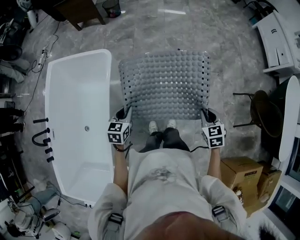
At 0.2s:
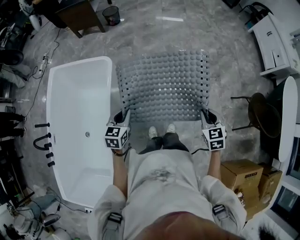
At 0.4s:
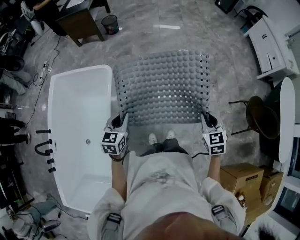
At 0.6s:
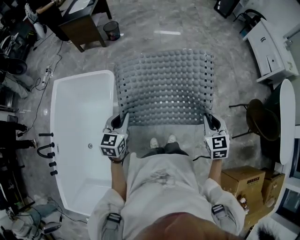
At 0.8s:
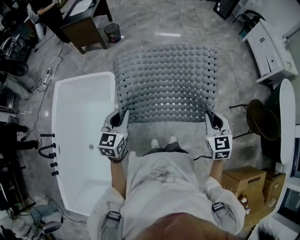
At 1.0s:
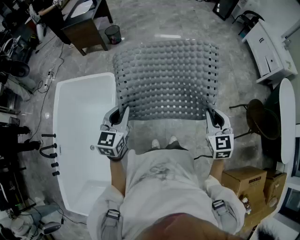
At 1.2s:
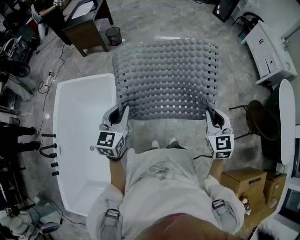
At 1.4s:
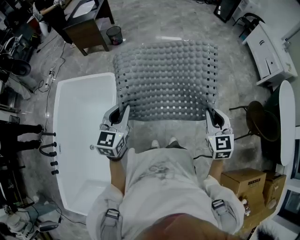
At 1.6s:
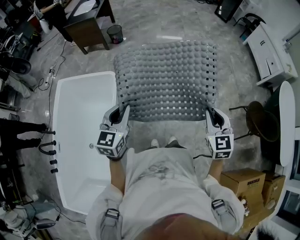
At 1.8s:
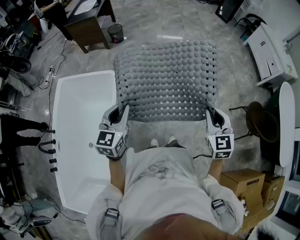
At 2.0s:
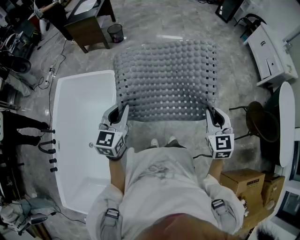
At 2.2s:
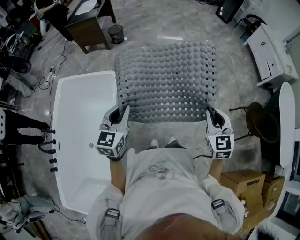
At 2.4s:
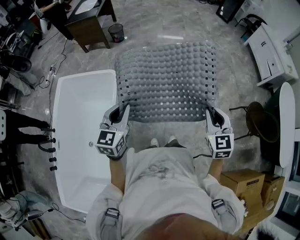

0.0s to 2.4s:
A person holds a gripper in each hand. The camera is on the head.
0.0s to 1.2s: Both grippers move upward, approximately 25 cm. The left gripper rotates some 30 degrees. Meanwhile the right gripper turns by some 30 degrees.
1.2s to 2.4s: Both grippers stay about where they are.

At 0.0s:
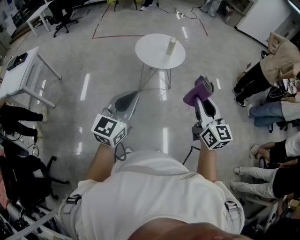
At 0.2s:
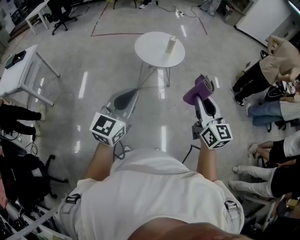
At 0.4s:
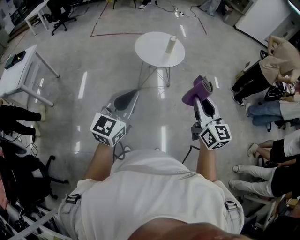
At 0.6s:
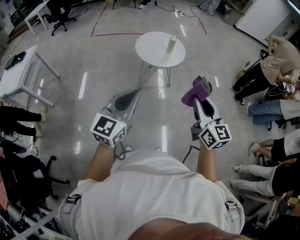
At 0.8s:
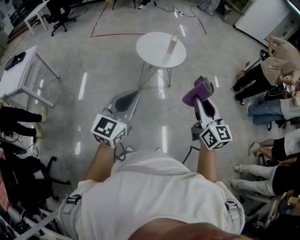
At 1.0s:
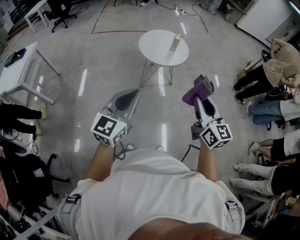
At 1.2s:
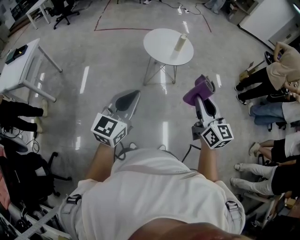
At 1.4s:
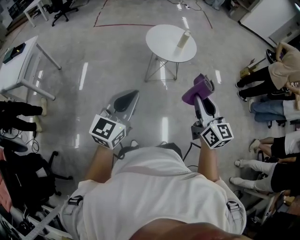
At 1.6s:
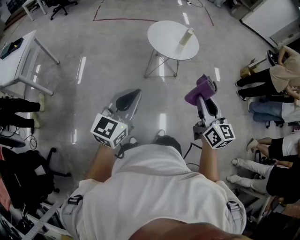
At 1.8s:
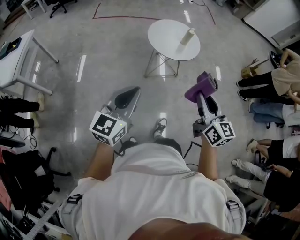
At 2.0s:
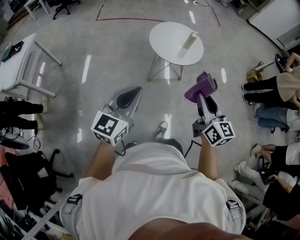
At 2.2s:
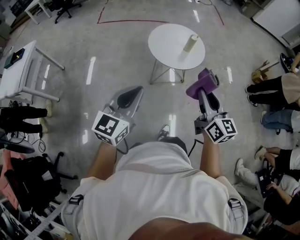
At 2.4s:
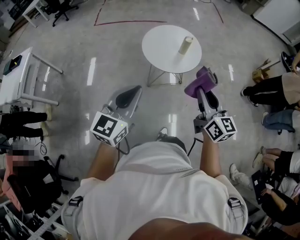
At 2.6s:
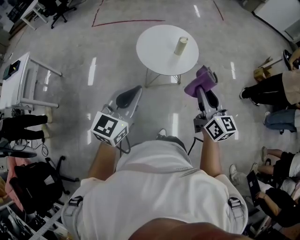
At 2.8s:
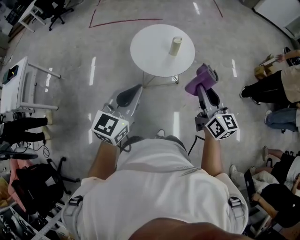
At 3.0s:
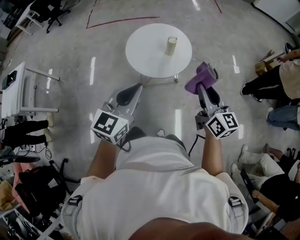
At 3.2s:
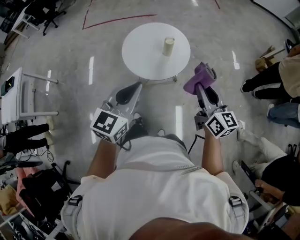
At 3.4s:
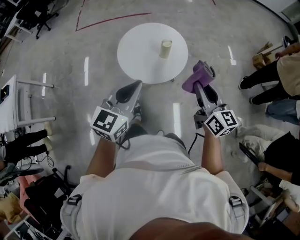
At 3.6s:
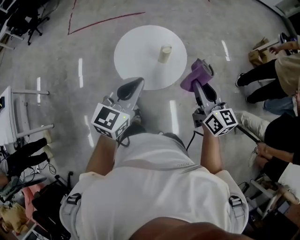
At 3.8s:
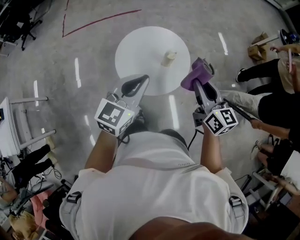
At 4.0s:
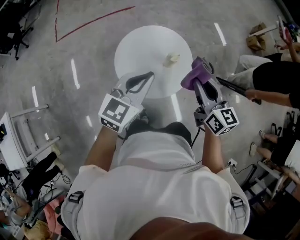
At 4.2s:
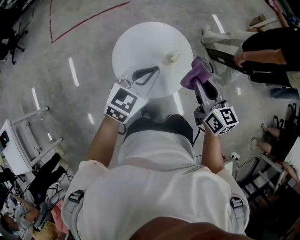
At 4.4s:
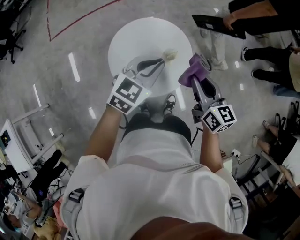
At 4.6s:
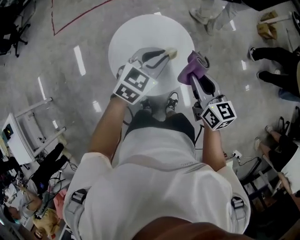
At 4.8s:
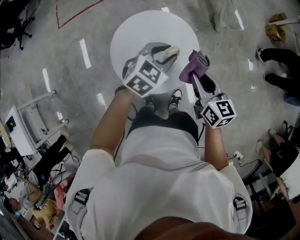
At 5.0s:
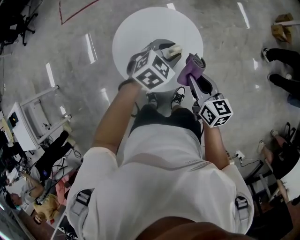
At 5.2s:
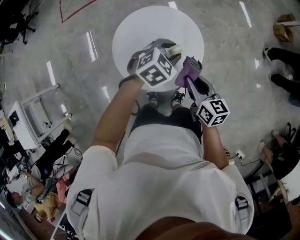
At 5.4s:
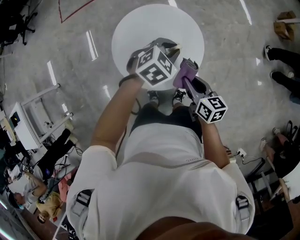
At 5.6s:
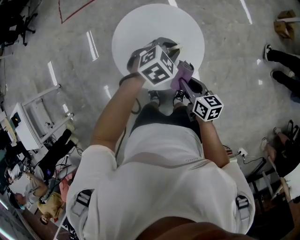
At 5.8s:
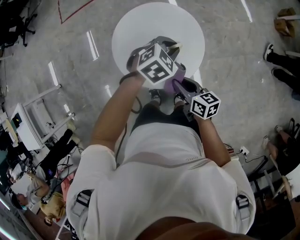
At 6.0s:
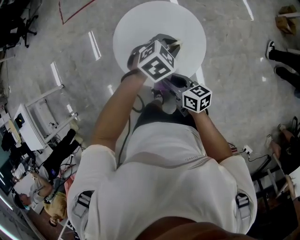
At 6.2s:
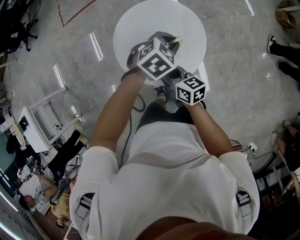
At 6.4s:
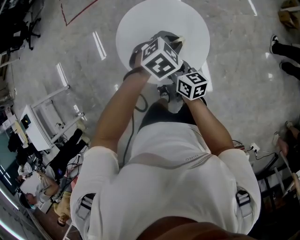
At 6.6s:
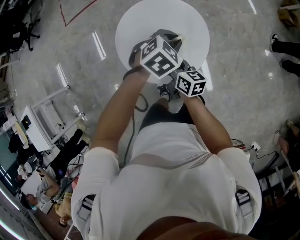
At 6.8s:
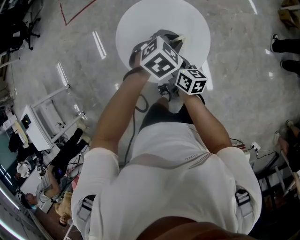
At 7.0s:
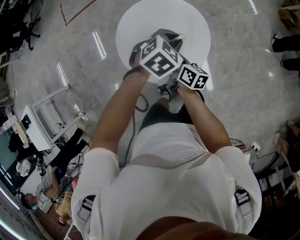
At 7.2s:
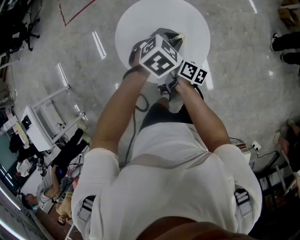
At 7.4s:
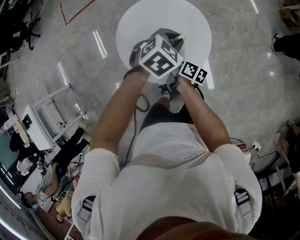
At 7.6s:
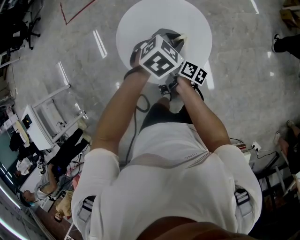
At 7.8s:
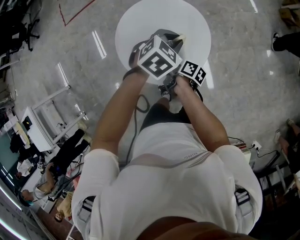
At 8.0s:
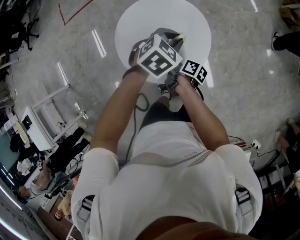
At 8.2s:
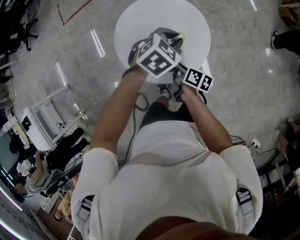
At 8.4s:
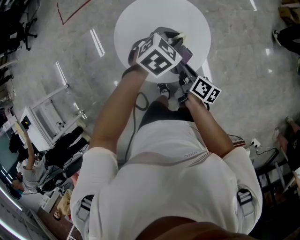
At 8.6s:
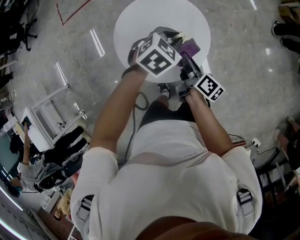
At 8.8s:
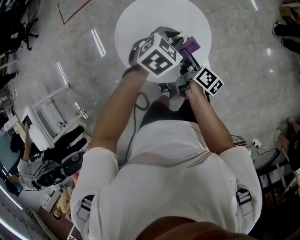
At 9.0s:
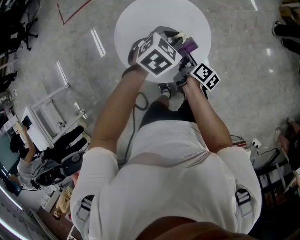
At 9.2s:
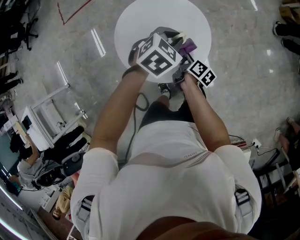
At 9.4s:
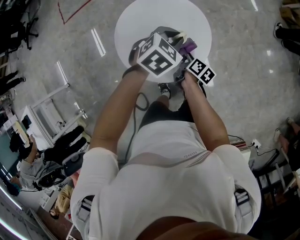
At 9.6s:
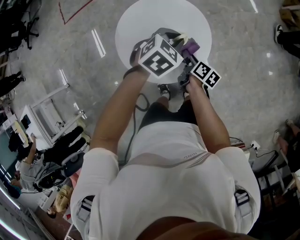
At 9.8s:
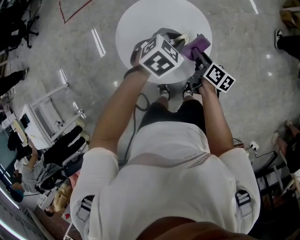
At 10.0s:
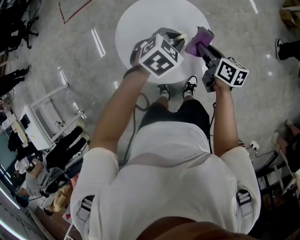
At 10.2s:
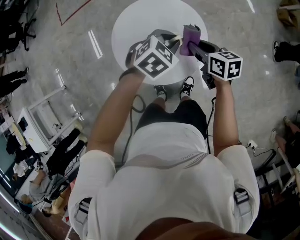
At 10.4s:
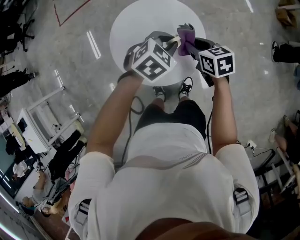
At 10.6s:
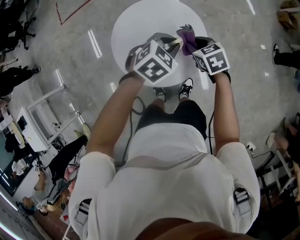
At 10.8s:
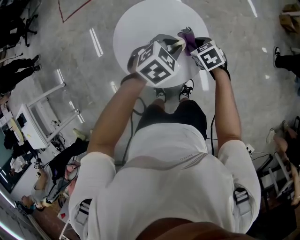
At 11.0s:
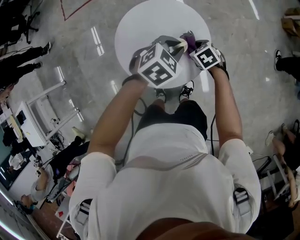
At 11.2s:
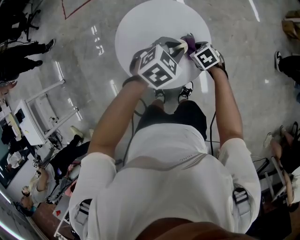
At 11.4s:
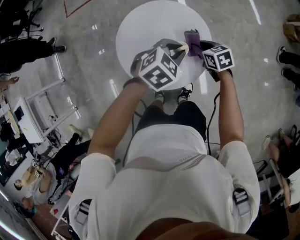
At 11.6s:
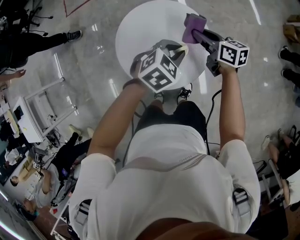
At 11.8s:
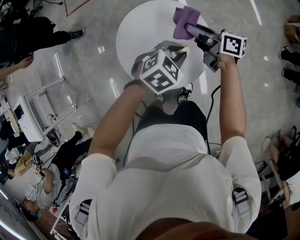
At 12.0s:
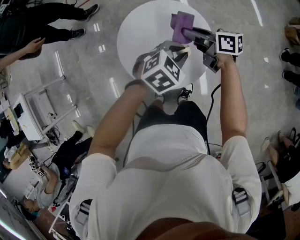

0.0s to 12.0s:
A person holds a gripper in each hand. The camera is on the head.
0.0s to 1.6s: The grippers both shift to the left by some 15 cm.
1.6s to 3.0s: Both grippers are carried forward and to the right, roughly 50 cm.
3.0s to 4.4s: The left gripper travels forward by approximately 40 cm, and changes its angle by some 40 degrees; the right gripper is displaced forward and to the left by some 35 cm.
4.4s to 6.0s: The right gripper travels downward and to the left by approximately 20 cm, and swivels roughly 40 degrees; the left gripper heads downward and forward, covering about 15 cm, rotates roughly 30 degrees, and opens, then closes again.
6.0s to 7.6s: The right gripper goes approximately 15 cm downward and forward, and twists about 40 degrees clockwise, seen from behind.
7.6s to 9.0s: The right gripper is displaced to the right by about 5 cm, and moves roughly 10 cm upward and comes back.
9.0s to 10.4s: The right gripper goes approximately 10 cm upward and forward, and twists about 60 degrees counterclockwise, seen from behind.
10.4s to 12.0s: The right gripper shifts about 10 cm forward and to the left, goes downward and returns, approximately 10 cm each way, and turns by some 40 degrees.

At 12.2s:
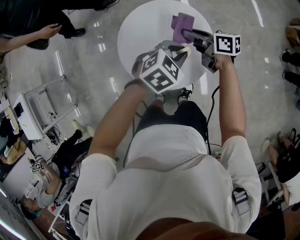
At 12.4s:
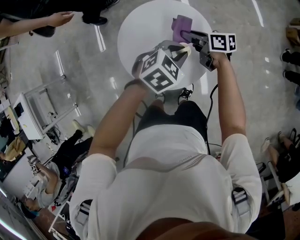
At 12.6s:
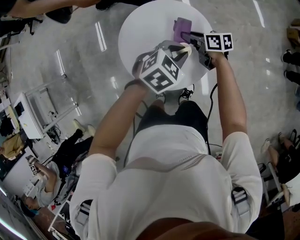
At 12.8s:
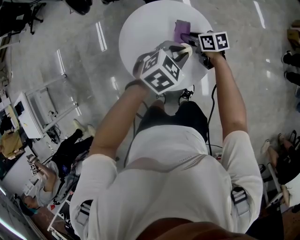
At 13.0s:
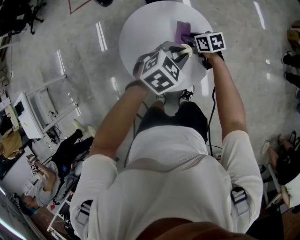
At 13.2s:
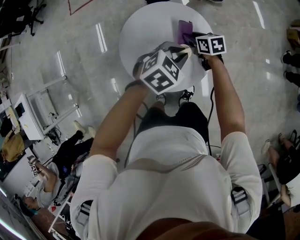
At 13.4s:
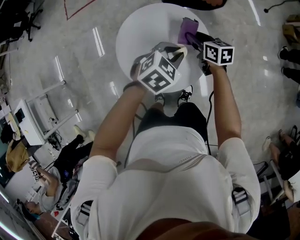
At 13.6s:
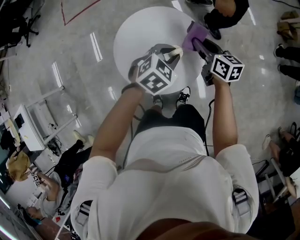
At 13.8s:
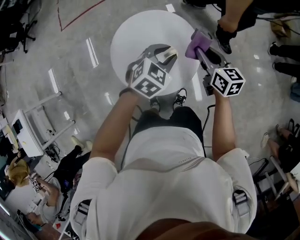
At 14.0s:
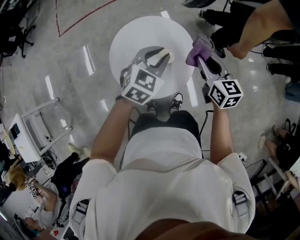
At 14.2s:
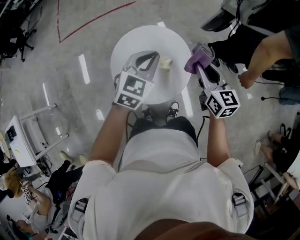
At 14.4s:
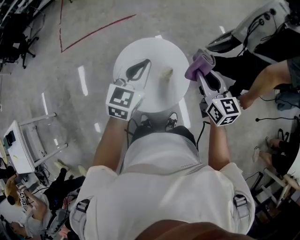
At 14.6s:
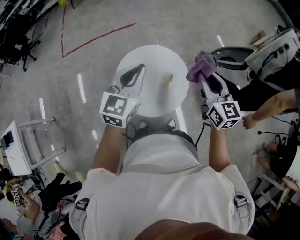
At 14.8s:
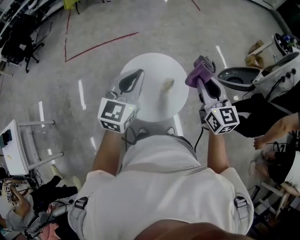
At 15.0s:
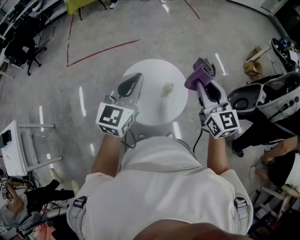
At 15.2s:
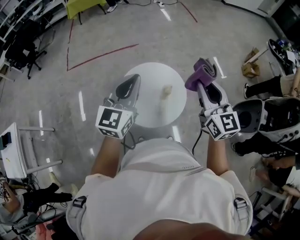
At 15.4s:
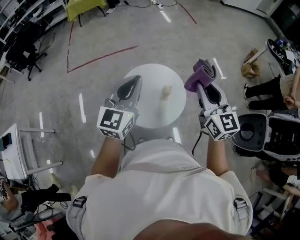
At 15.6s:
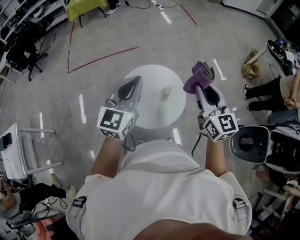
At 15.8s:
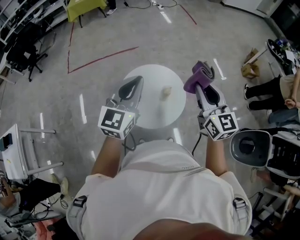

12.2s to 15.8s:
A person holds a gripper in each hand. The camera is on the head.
12.2s to 14.0s: The left gripper is displaced upward by some 10 cm, while the right gripper heads to the right, upward and backward, covering approximately 20 cm, and changes its angle by some 50 degrees.
14.0s to 15.8s: The two grippers go some 30 cm upward and backward. The left gripper points its fingers about 30 degrees further upward, and closes its fingers; the right gripper rotates some 30 degrees.

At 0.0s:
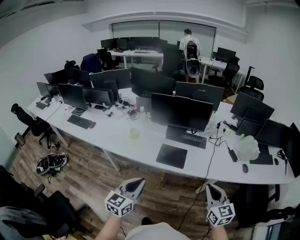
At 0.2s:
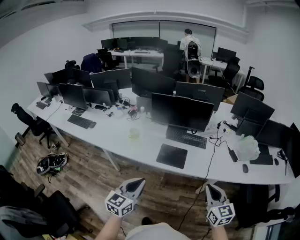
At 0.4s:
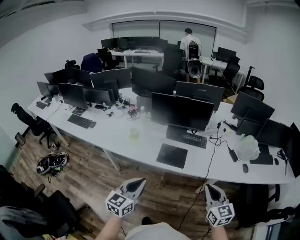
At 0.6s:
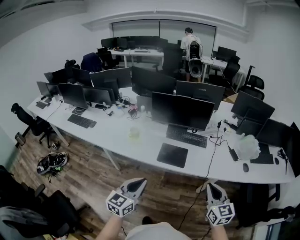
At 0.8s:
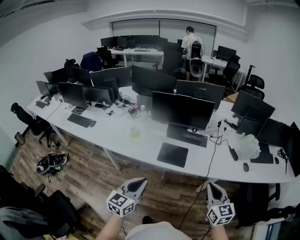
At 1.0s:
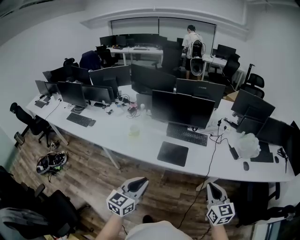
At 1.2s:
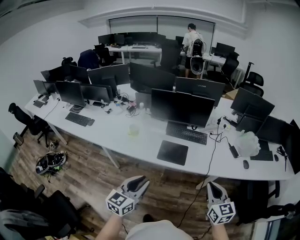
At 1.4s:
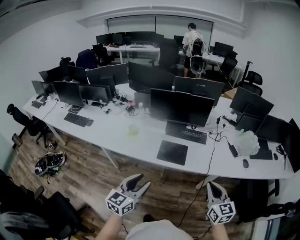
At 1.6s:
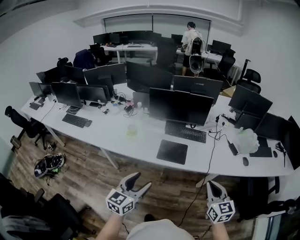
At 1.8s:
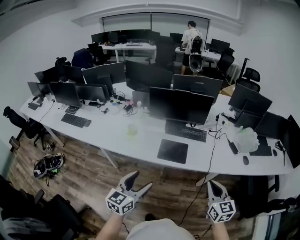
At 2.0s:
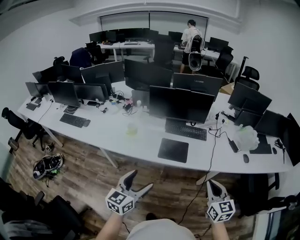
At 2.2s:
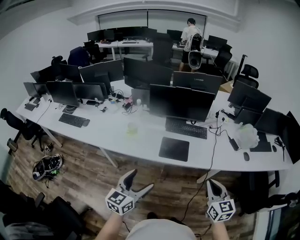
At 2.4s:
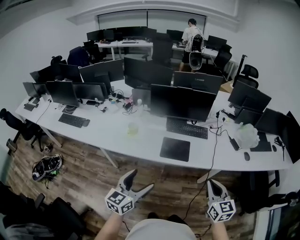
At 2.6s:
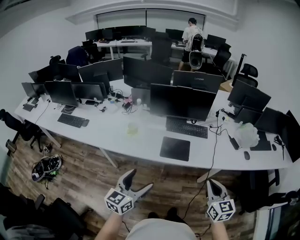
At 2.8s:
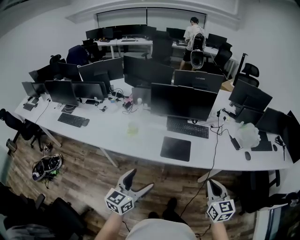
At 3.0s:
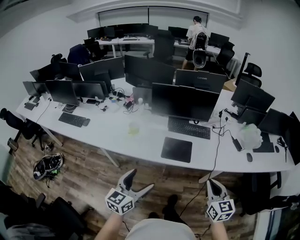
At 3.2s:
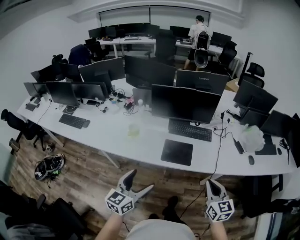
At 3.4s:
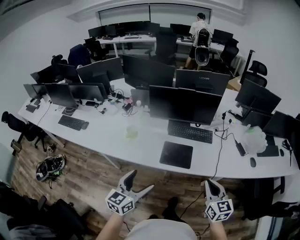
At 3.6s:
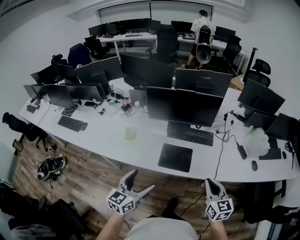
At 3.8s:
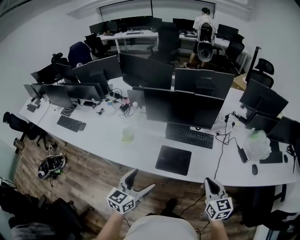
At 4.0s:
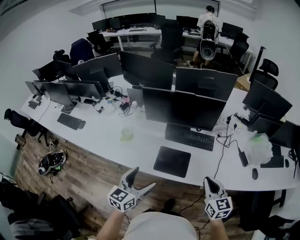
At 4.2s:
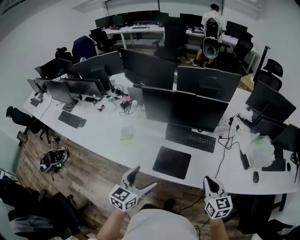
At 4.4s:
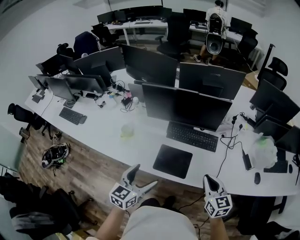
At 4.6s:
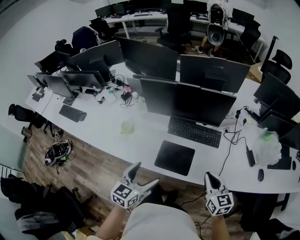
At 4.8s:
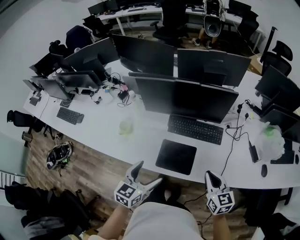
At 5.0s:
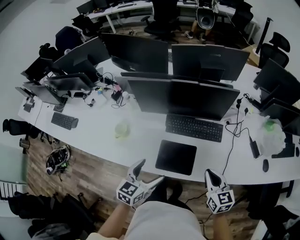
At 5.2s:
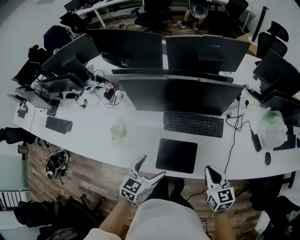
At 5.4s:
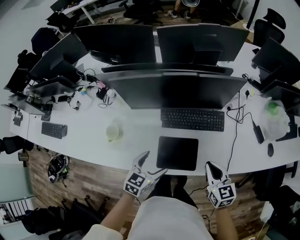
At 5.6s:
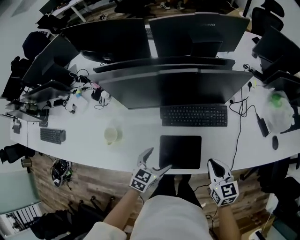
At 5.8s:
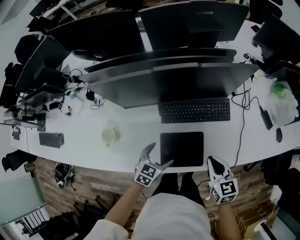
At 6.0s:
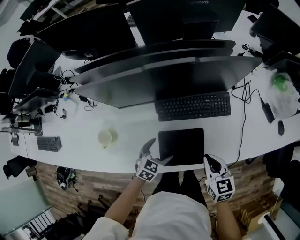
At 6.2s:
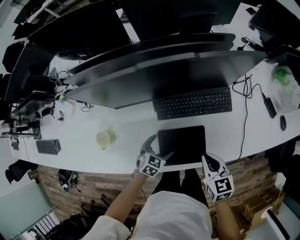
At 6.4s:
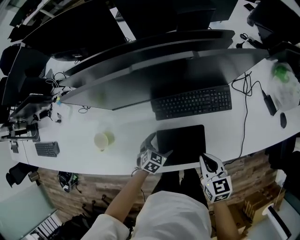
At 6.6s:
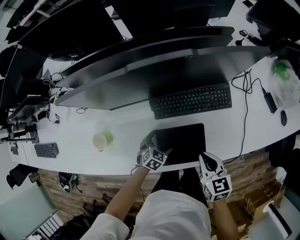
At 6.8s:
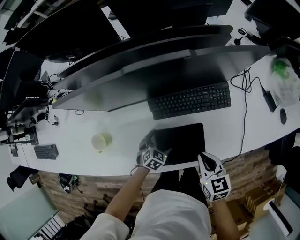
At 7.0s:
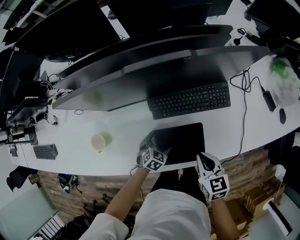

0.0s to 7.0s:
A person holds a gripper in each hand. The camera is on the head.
0.0s to 1.4s: The grippers make only small movements.
1.4s to 2.8s: The grippers both shift to the left by about 5 cm. The left gripper opens up.
2.8s to 4.2s: The right gripper travels forward by approximately 25 cm; the left gripper is displaced forward and to the right by about 25 cm.
4.2s to 5.6s: The right gripper is displaced forward and downward by approximately 20 cm, while the left gripper is displaced downward and forward by some 30 cm, and changes its angle by about 30 degrees.
5.6s to 7.0s: The right gripper goes roughly 10 cm downward and to the left. The left gripper is displaced downward by approximately 20 cm, and rotates approximately 30 degrees.
